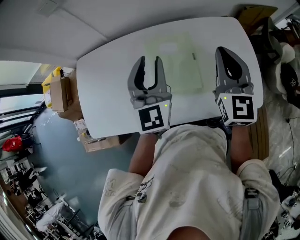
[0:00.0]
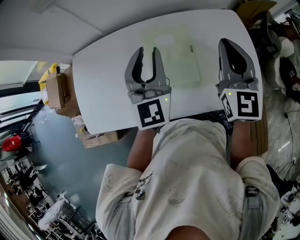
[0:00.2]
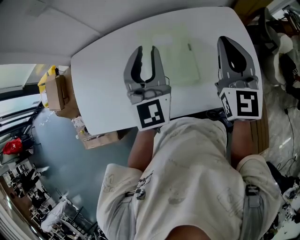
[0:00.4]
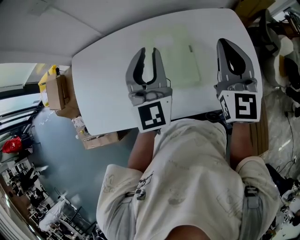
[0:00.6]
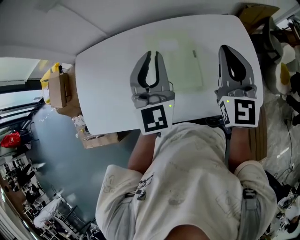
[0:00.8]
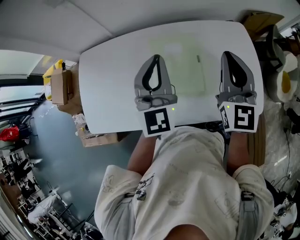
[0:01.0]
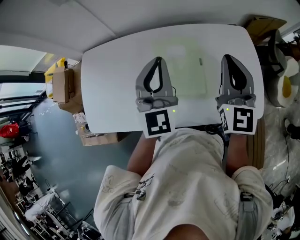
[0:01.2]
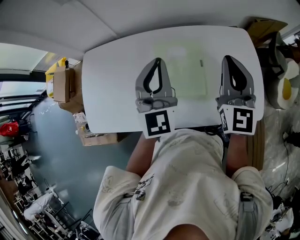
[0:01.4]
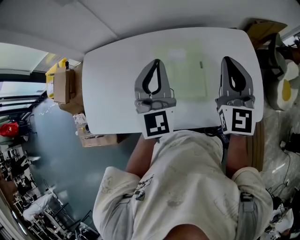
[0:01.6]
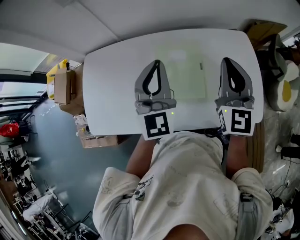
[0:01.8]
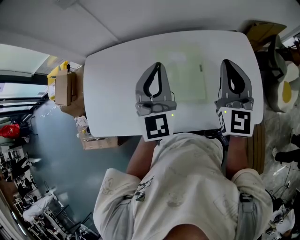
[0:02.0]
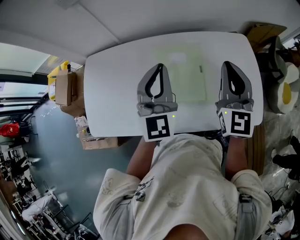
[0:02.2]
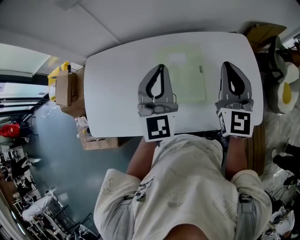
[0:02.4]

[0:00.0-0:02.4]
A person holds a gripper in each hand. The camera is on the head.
0:00.0 to 0:01.2: The left gripper closes up.
0:01.2 to 0:02.4: Both grippers stay about where they are.

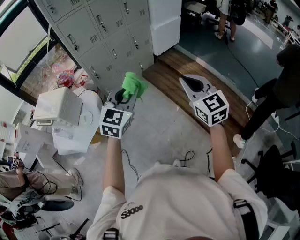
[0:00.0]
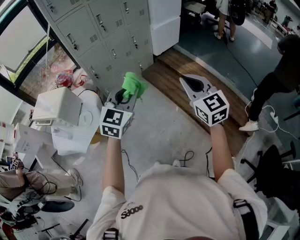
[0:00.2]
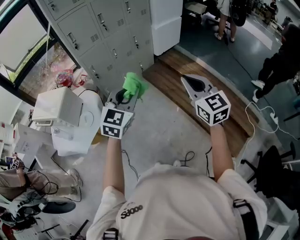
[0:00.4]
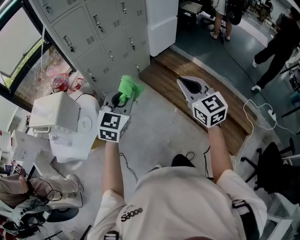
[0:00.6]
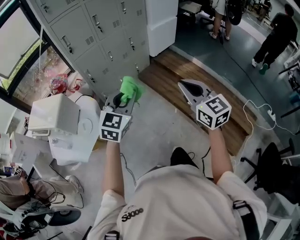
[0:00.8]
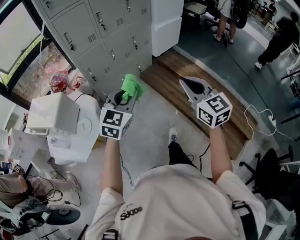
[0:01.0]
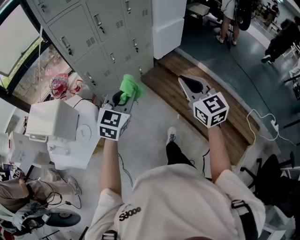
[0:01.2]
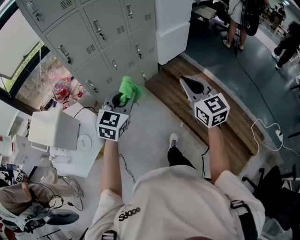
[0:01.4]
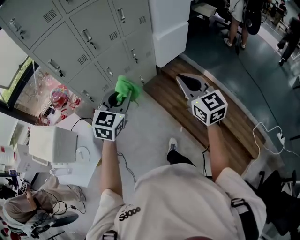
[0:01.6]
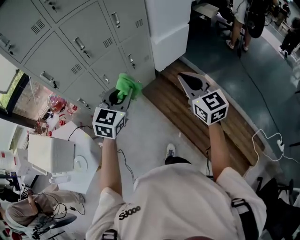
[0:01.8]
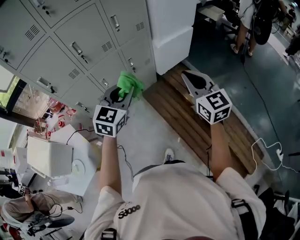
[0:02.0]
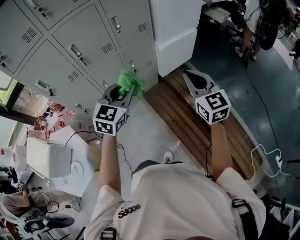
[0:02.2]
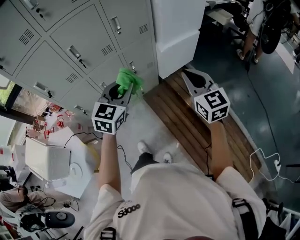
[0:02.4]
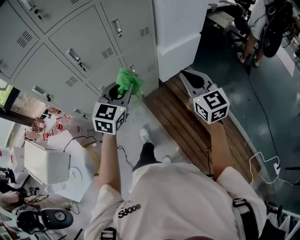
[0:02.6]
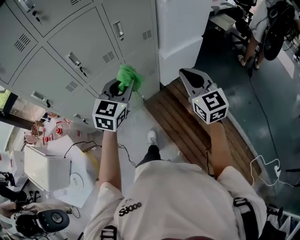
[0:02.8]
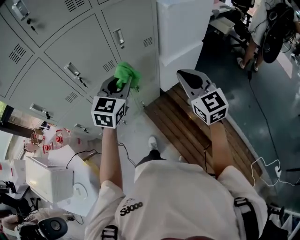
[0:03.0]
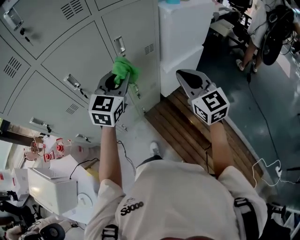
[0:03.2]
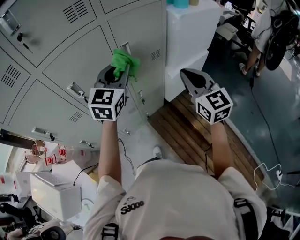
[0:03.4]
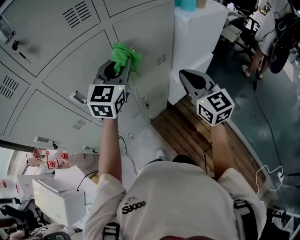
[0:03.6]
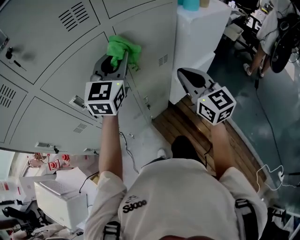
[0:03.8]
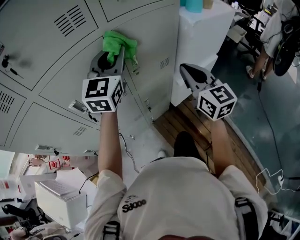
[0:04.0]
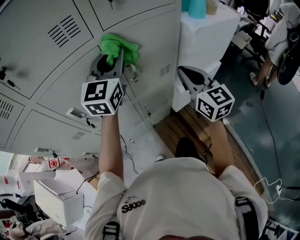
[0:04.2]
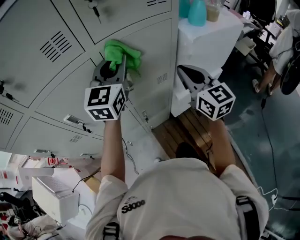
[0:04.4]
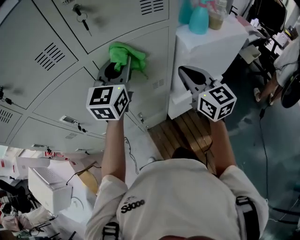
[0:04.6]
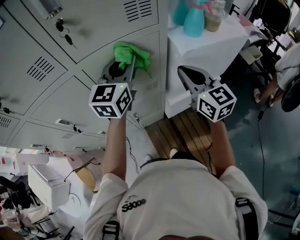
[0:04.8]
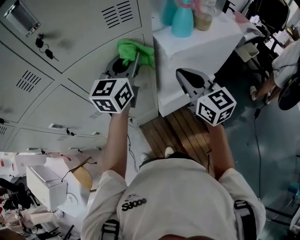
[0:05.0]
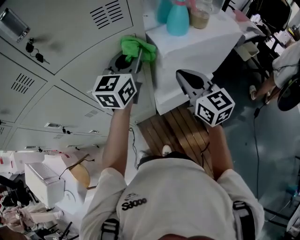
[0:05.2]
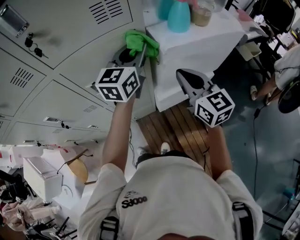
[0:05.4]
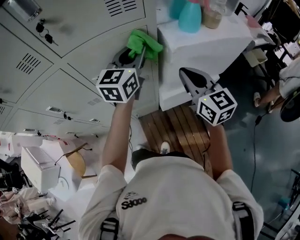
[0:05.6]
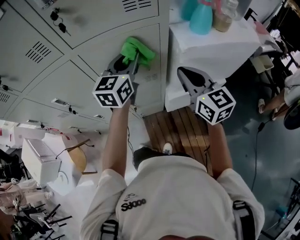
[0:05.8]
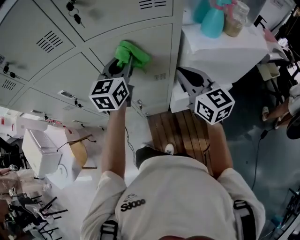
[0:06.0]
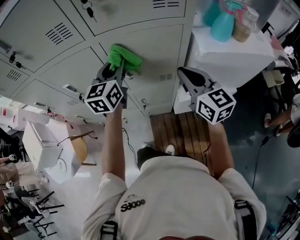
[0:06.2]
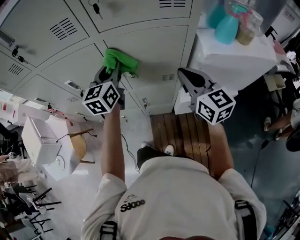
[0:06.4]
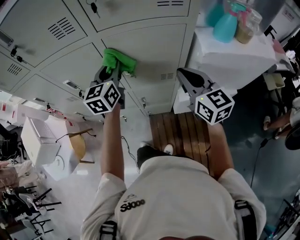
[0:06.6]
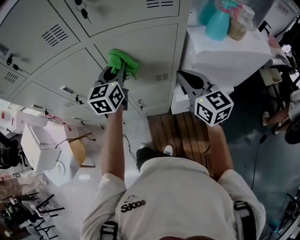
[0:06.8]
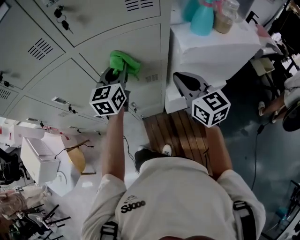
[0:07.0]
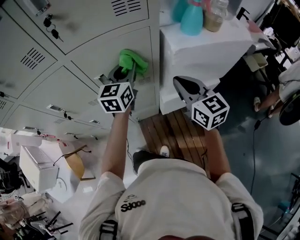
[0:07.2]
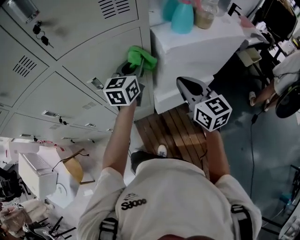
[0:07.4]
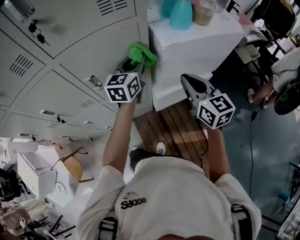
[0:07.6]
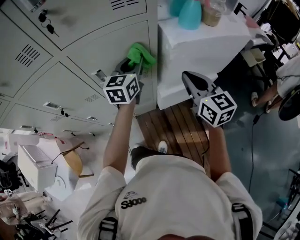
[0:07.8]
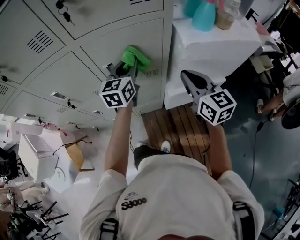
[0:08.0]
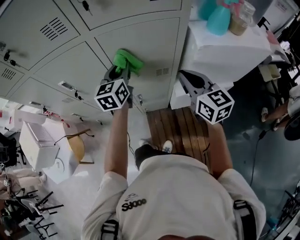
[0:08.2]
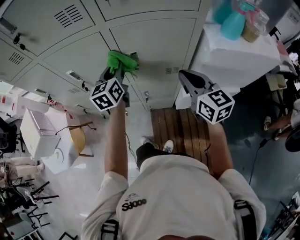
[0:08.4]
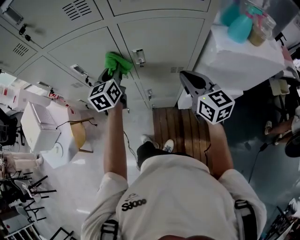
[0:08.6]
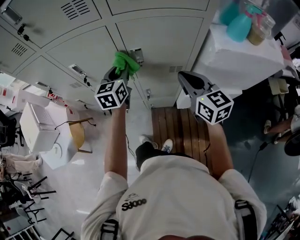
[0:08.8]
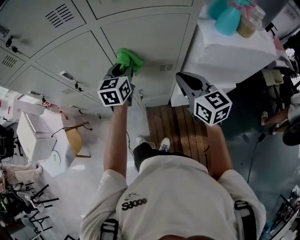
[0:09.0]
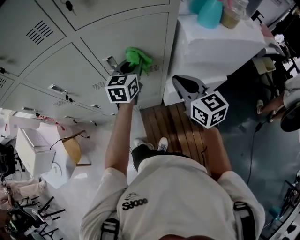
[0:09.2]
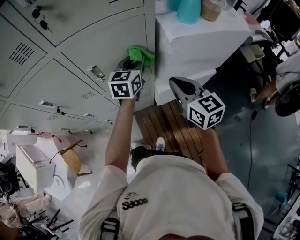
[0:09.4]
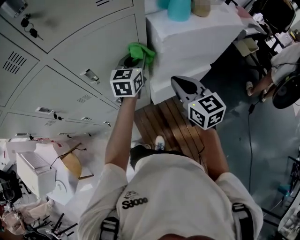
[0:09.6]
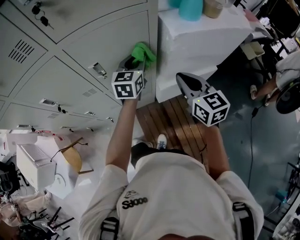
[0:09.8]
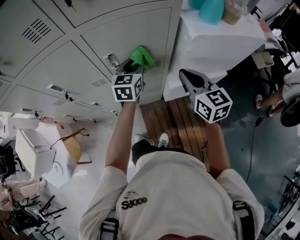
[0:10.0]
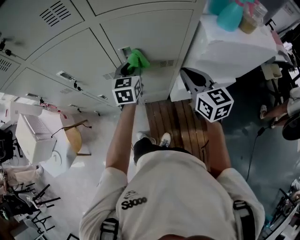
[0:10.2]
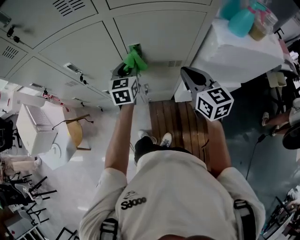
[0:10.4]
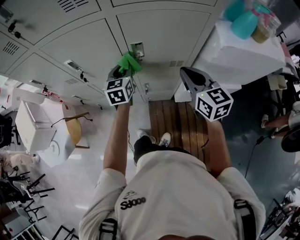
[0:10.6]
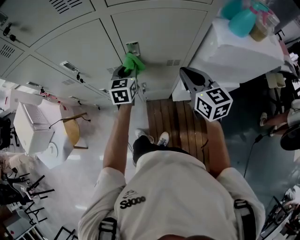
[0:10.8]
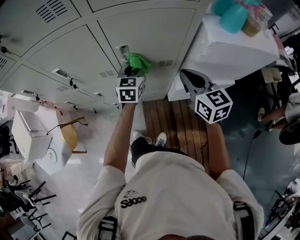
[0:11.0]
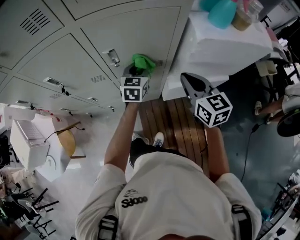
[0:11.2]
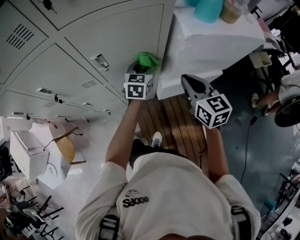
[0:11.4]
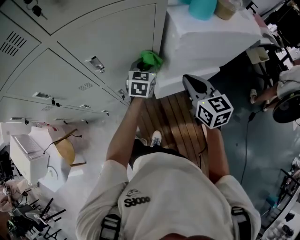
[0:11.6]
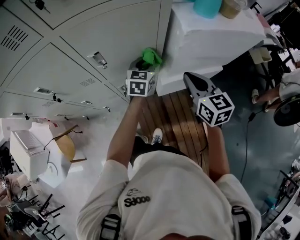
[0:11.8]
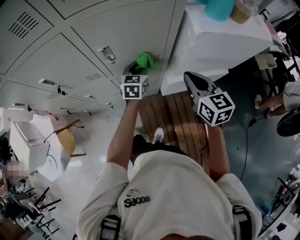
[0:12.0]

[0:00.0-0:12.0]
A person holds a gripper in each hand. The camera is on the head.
0:00.0 to 0:01.6: Both grippers move forward, roughly 35 cm.
0:01.6 to 0:03.0: The two grippers go approximately 40 cm forward.
0:03.0 to 0:04.4: The left gripper goes some 35 cm forward and upward; the right gripper is displaced forward by about 30 cm.
0:04.4 to 0:06.0: The left gripper moves about 20 cm to the right and comes back, and changes its angle by approximately 20 degrees; the right gripper travels to the right by about 5 cm, and changes its angle by roughly 20 degrees.
0:06.0 to 0:07.6: The two grippers go approximately 10 cm to the right.
0:07.6 to 0:09.0: The left gripper ends up some 20 cm from where it was, and turns by approximately 20 degrees, while the right gripper ends up roughly 15 cm from where it was.
0:09.0 to 0:10.4: The right gripper moves approximately 10 cm to the right and comes back. The left gripper moves downward, about 5 cm, and reaches approximately 20 cm to the right, then returns.
0:10.4 to 0:12.0: The left gripper is displaced to the right and downward by about 20 cm. The right gripper shifts some 10 cm to the right.

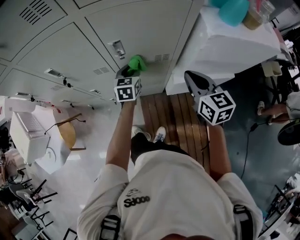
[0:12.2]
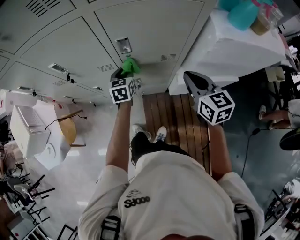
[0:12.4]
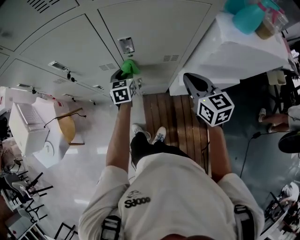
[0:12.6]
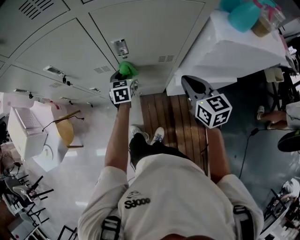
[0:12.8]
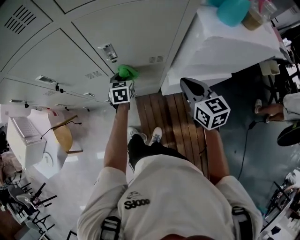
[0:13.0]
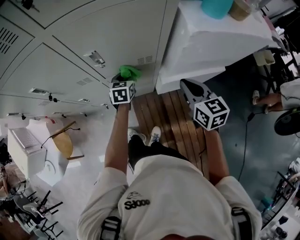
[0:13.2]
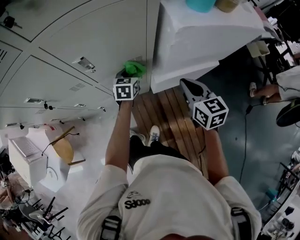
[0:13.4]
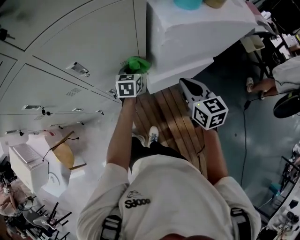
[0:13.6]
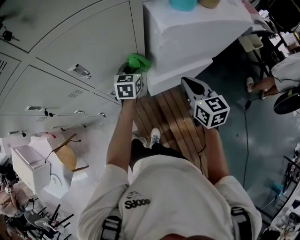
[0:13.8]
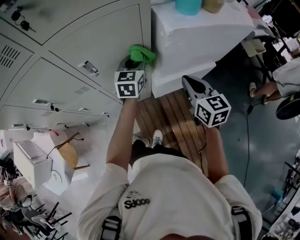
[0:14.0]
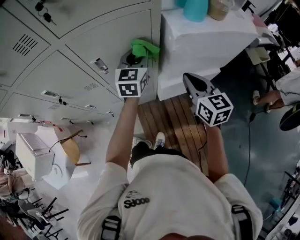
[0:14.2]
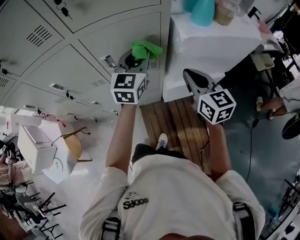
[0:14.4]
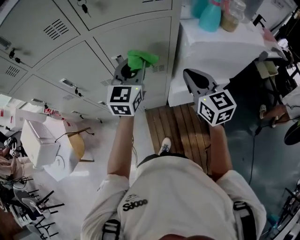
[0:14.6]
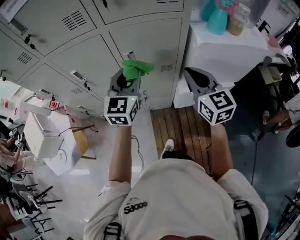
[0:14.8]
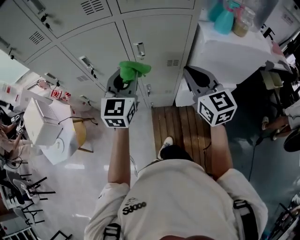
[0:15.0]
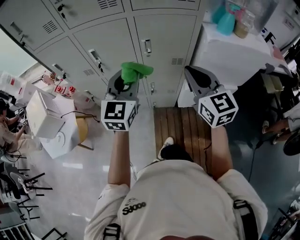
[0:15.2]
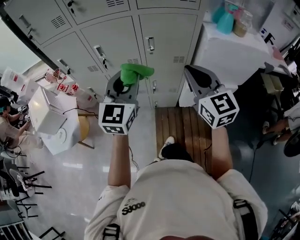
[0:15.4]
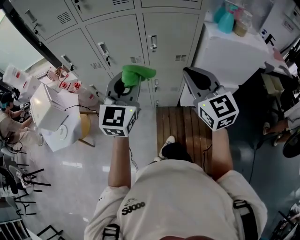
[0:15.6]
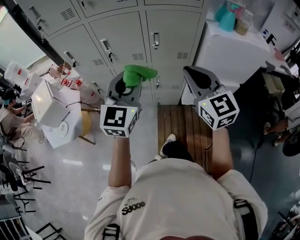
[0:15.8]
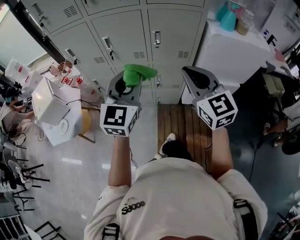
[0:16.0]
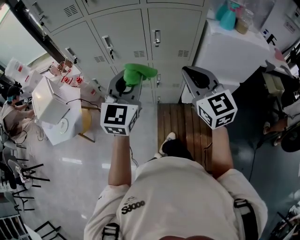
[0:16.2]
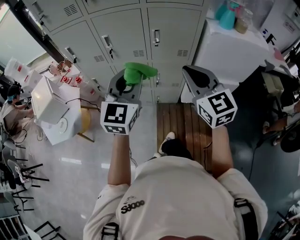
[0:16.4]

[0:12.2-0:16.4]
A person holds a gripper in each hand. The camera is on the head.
0:12.2 to 0:13.6: The right gripper travels to the right by approximately 10 cm. The left gripper is displaced to the right by some 15 cm.
0:13.6 to 0:15.0: The right gripper shifts roughly 25 cm upward, to the left and backward, and swivels roughly 30 degrees; the left gripper is displaced upward, backward and to the left by some 40 cm, and rotates roughly 40 degrees.
0:15.0 to 0:16.4: The right gripper travels backward and to the left by approximately 20 cm. Meanwhile the left gripper heads backward, covering roughly 20 cm.

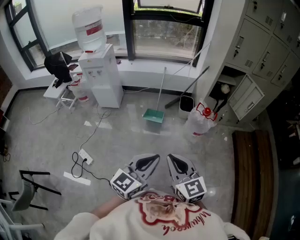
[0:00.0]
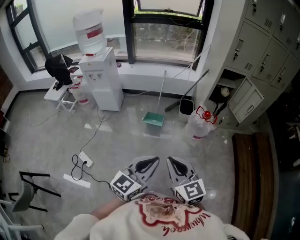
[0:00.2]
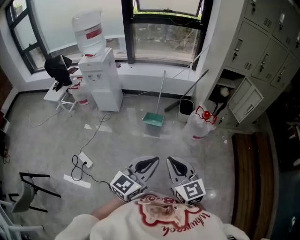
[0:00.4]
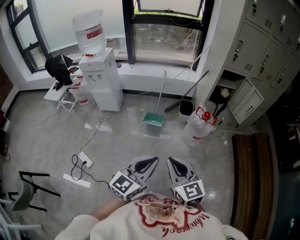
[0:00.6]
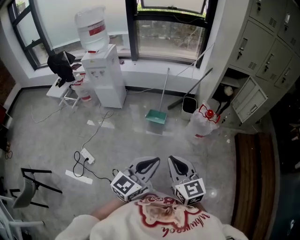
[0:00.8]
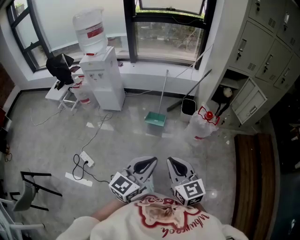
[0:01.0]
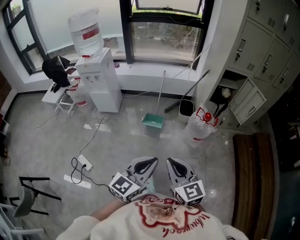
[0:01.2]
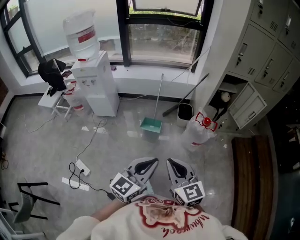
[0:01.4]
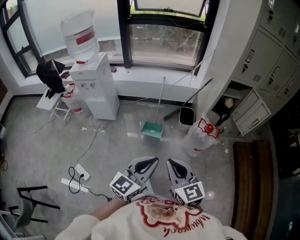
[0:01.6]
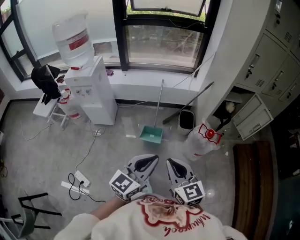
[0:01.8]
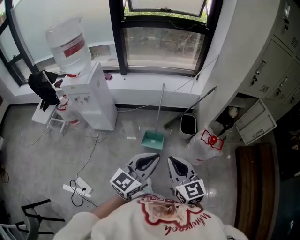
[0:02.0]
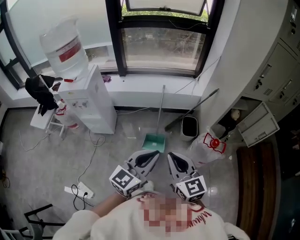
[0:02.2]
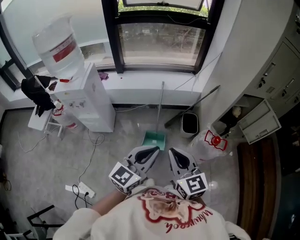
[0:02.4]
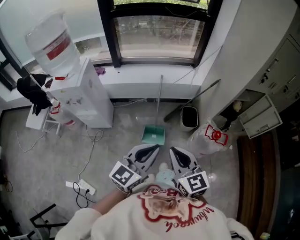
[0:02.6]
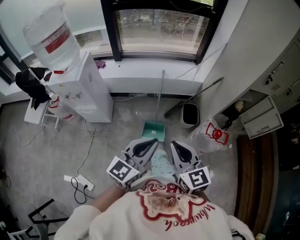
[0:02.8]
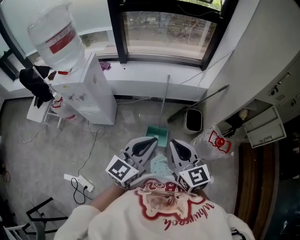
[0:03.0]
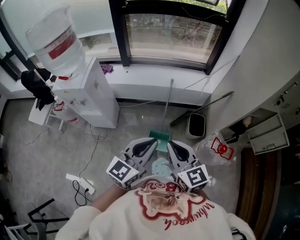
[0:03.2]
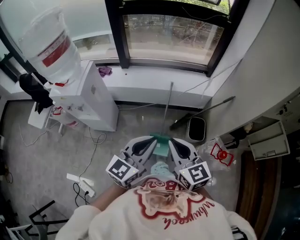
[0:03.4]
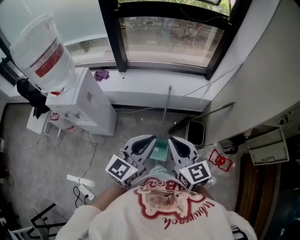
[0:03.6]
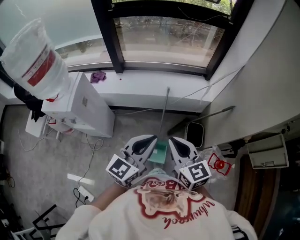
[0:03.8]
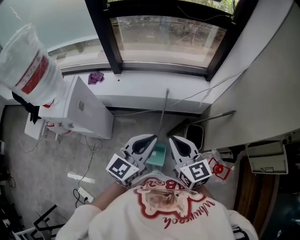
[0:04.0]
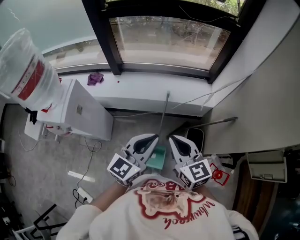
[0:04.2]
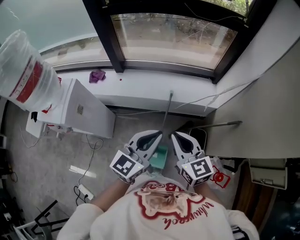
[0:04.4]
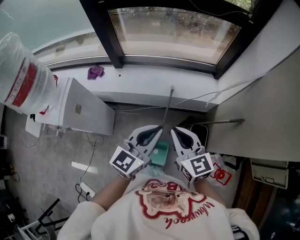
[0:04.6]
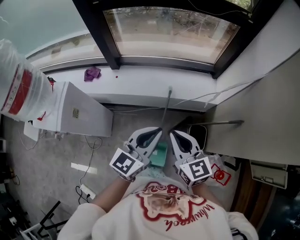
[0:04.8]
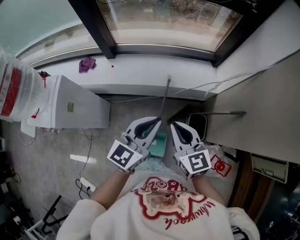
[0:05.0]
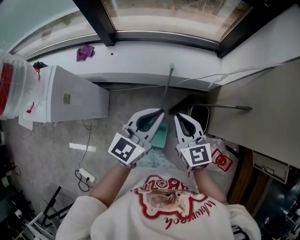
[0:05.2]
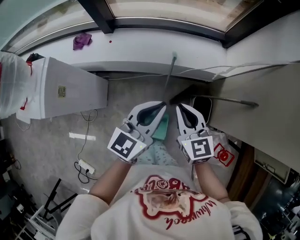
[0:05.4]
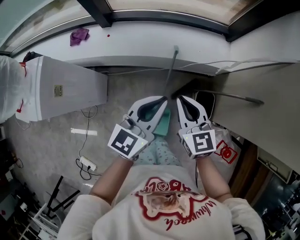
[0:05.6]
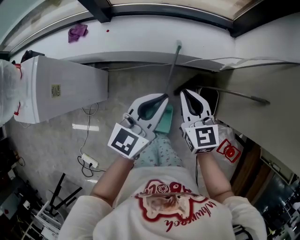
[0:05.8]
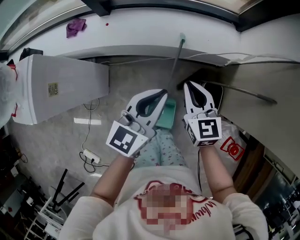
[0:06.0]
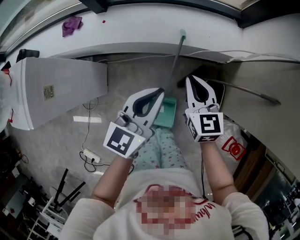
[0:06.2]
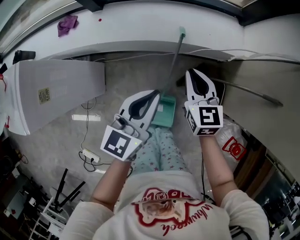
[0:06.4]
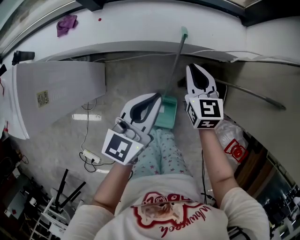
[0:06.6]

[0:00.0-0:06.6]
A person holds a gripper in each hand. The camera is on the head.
0:00.0 to 0:01.6: Both grippers travel together forward, roughly 15 cm.
0:01.6 to 0:03.2: Both grippers travel together forward, some 35 cm.
0:03.2 to 0:05.0: Both grippers move forward, about 35 cm.
0:05.0 to 0:06.6: The right gripper travels downward and forward by some 30 cm, while the left gripper travels downward by approximately 20 cm.
